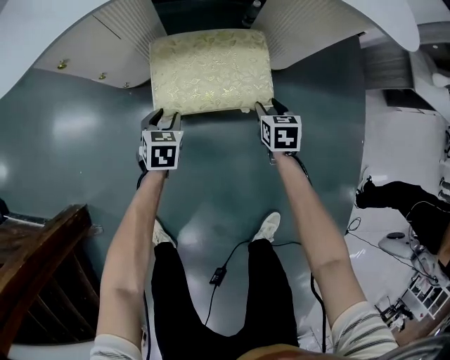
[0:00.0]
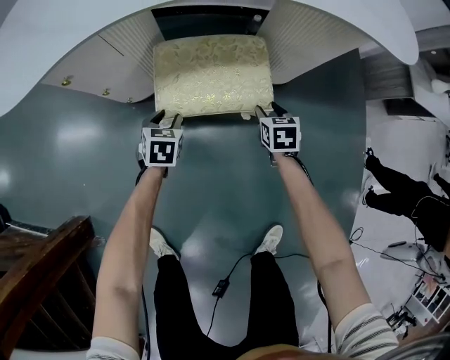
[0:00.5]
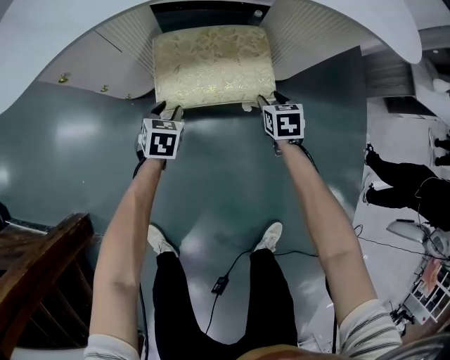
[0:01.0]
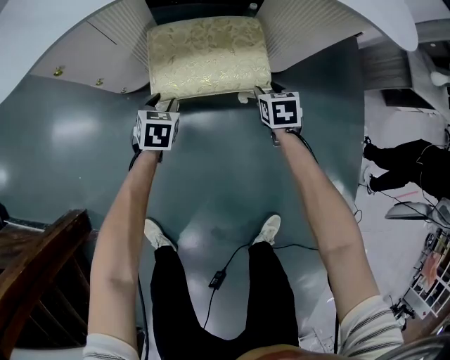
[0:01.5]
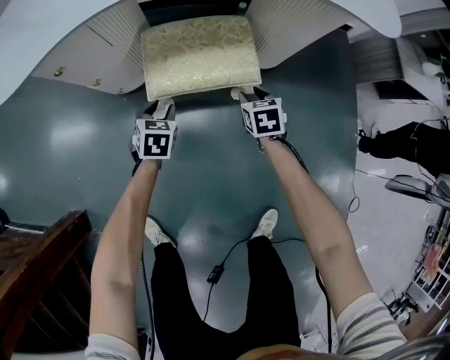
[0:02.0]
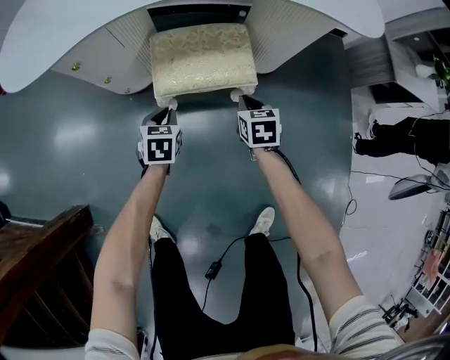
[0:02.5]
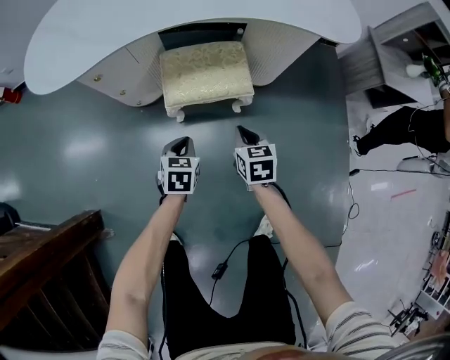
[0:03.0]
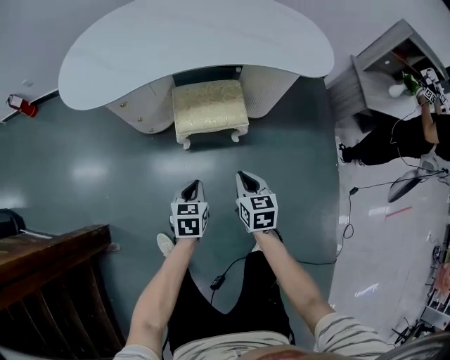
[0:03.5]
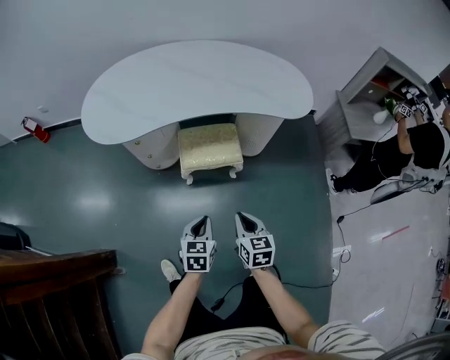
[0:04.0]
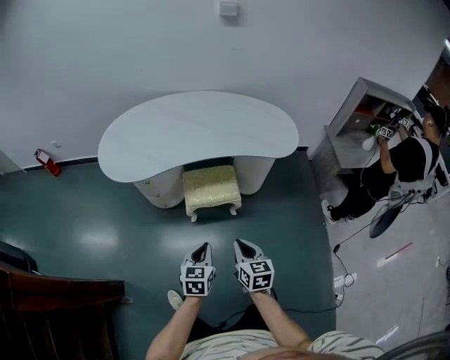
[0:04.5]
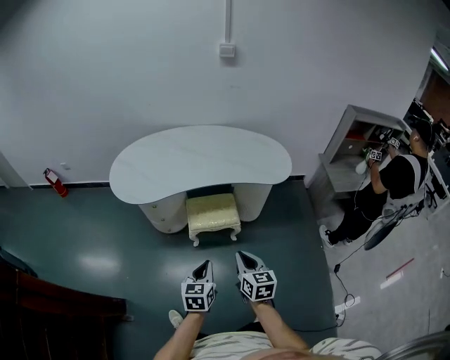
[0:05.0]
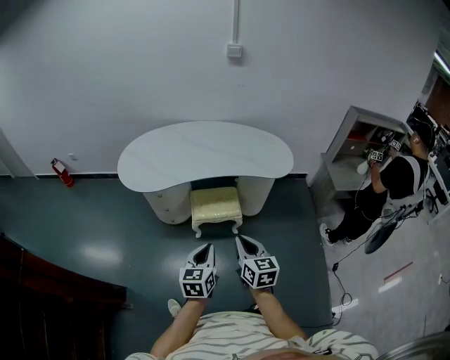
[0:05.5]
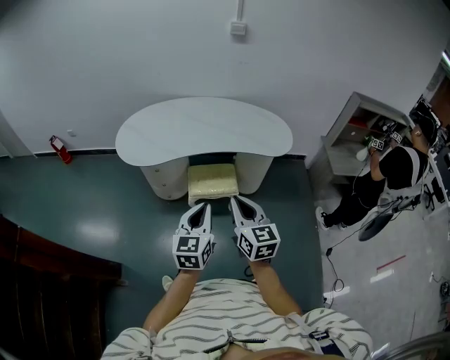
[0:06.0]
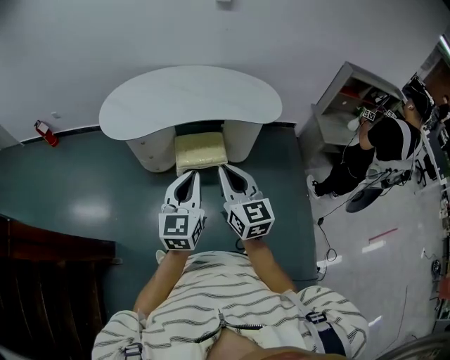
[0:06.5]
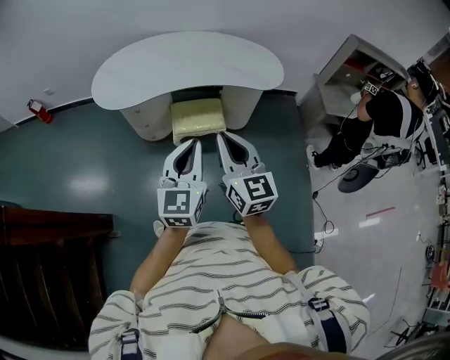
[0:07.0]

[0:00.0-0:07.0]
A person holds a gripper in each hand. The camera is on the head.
0:02.0 to 0:03.5: The grippers both shift upward and backward by approximately 35 cm. The left gripper closes up. Meanwhile the right gripper closes.
0:03.5 to 0:05.0: The two grippers go approximately 30 cm upward.
0:05.0 to 0:07.0: Both grippers travel together upward, about 20 cm. The right gripper turns by approximately 30 degrees. Meanwhile the left gripper changes its angle by roughly 30 degrees.

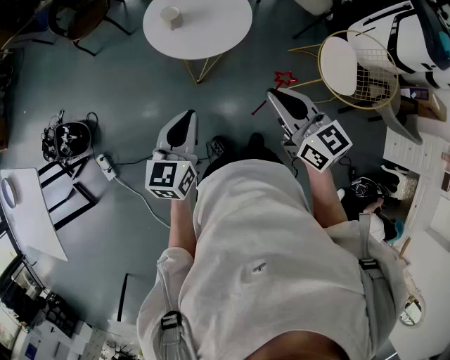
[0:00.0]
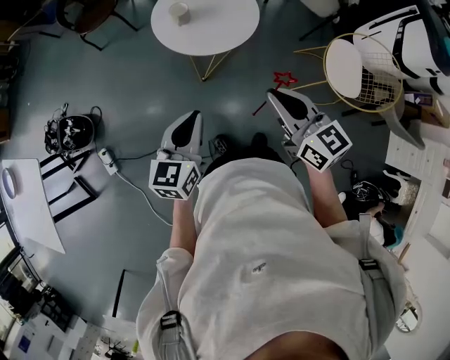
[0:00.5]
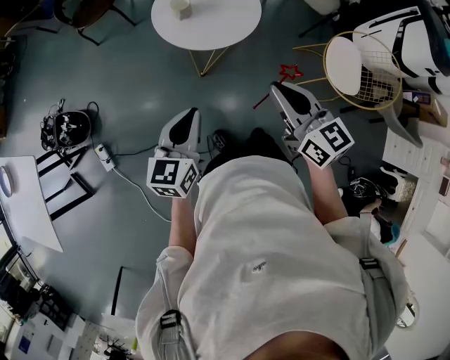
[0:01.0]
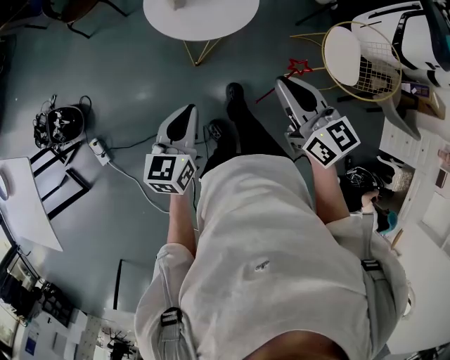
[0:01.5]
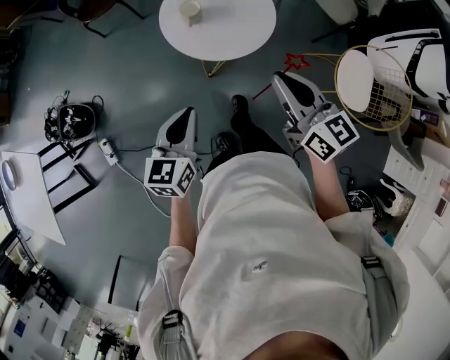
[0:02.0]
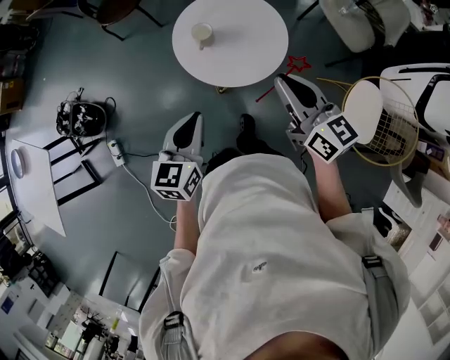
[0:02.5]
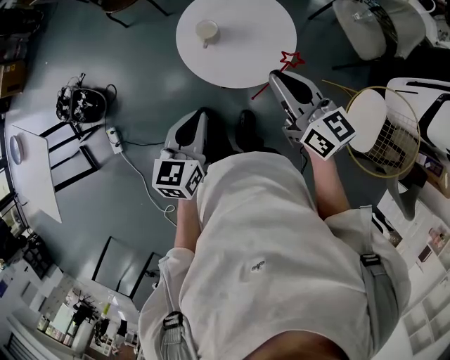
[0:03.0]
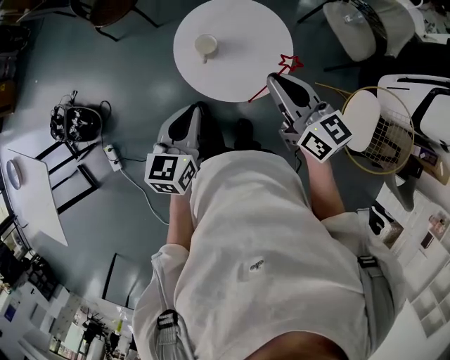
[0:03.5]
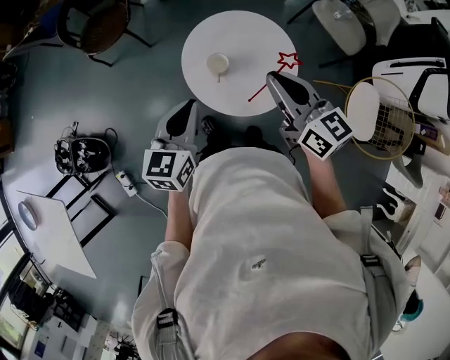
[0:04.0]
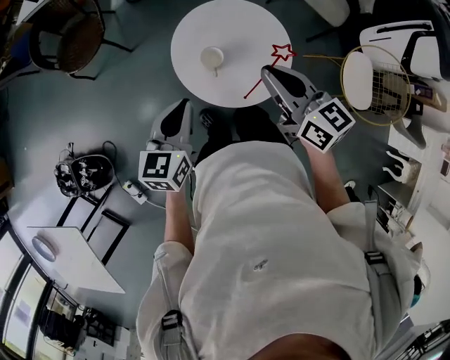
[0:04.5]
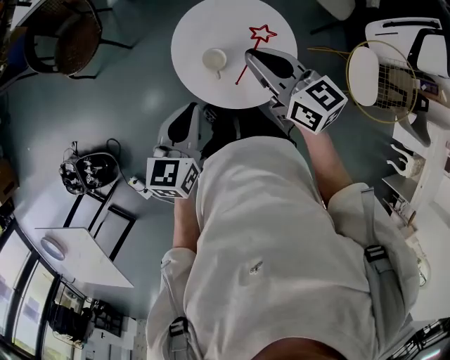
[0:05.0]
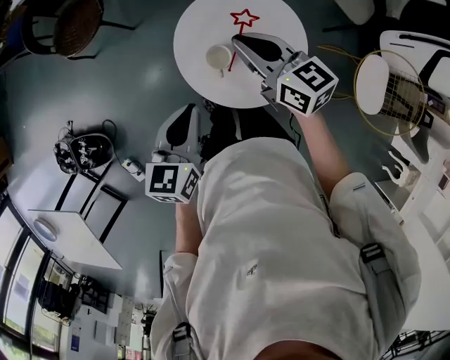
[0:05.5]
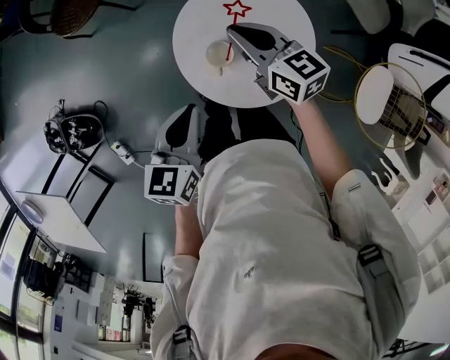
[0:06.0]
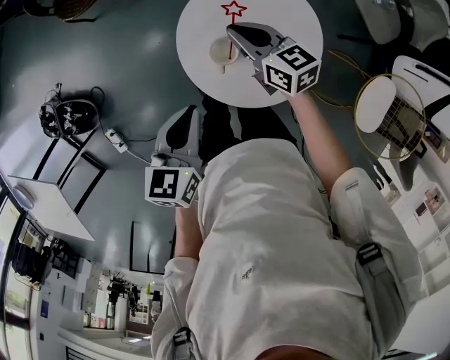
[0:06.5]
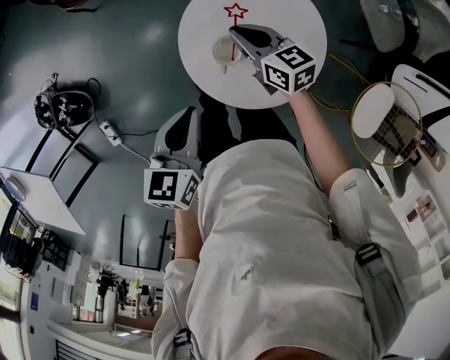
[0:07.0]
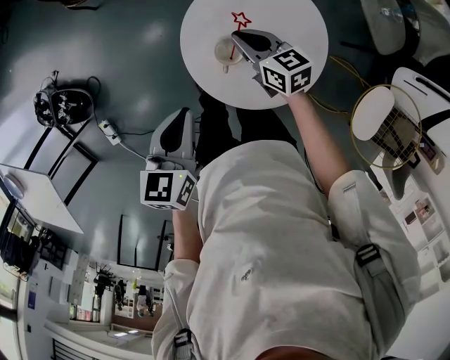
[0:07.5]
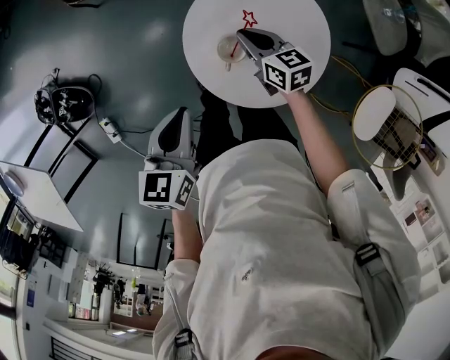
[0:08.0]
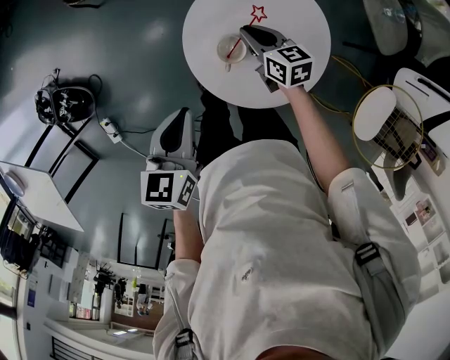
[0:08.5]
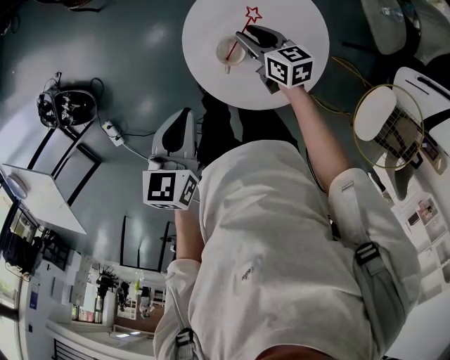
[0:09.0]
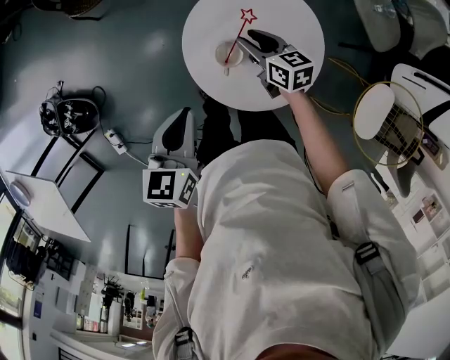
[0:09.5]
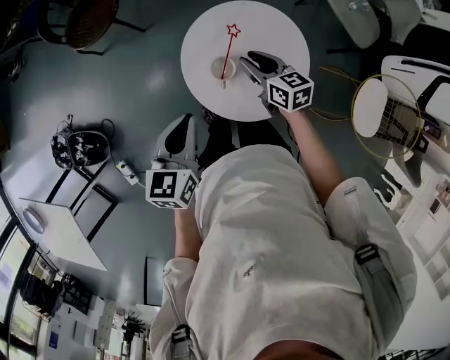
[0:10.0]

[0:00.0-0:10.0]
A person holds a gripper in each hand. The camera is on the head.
0:00.0 to 0:02.0: The right gripper travels forward by approximately 10 cm. The left gripper shifts some 5 cm forward.
0:02.0 to 0:04.0: Both grippers move forward, about 25 cm.
0:04.0 to 0:06.0: The right gripper travels forward and downward by some 25 cm; the left gripper heads downward and forward, covering roughly 10 cm.
0:06.0 to 0:08.0: The right gripper goes some 15 cm downward.
0:08.0 to 0:10.0: The right gripper heads upward, covering approximately 5 cm, and opens up.

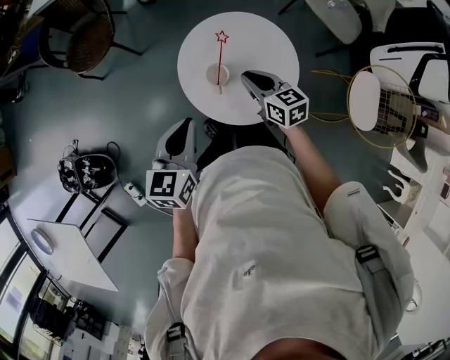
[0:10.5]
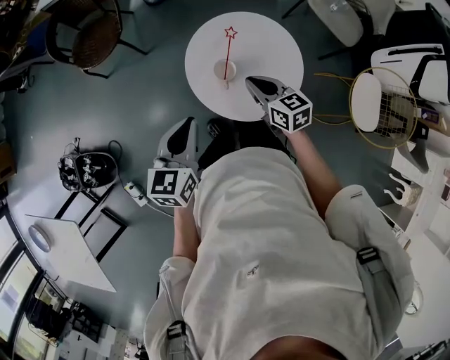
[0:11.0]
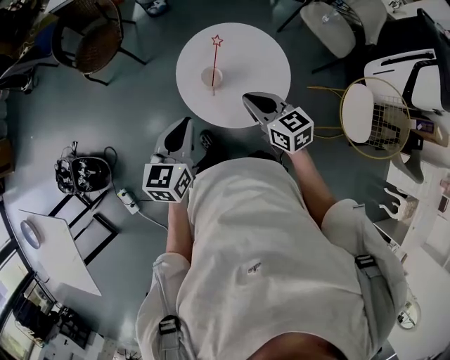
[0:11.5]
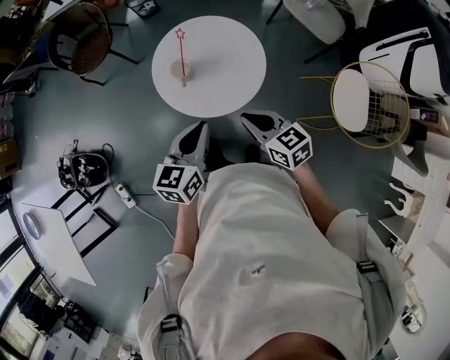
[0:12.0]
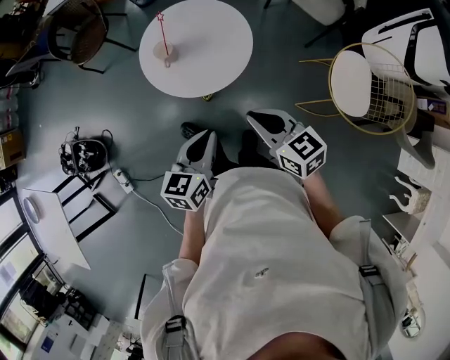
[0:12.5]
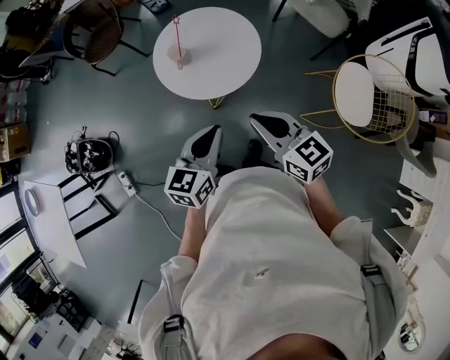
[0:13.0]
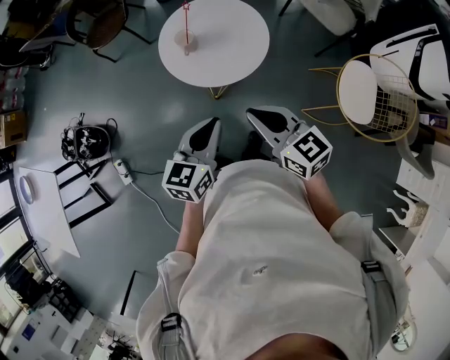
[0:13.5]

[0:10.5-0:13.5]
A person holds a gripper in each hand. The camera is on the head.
0:10.5 to 0:12.0: The left gripper is displaced to the right and backward by roughly 20 cm, while the right gripper shifts some 25 cm backward and to the right.
0:12.0 to 0:13.5: The right gripper moves backward and upward, approximately 15 cm. The left gripper is displaced backward by roughly 15 cm.

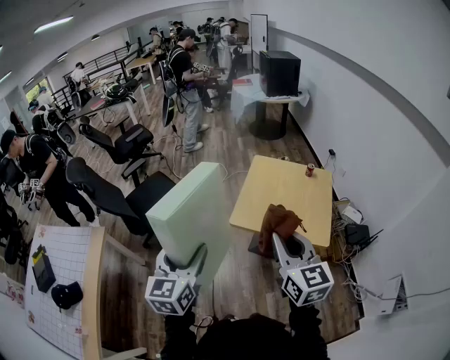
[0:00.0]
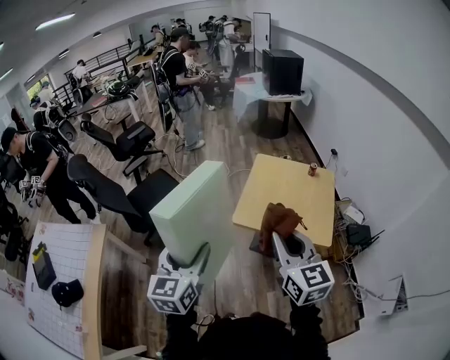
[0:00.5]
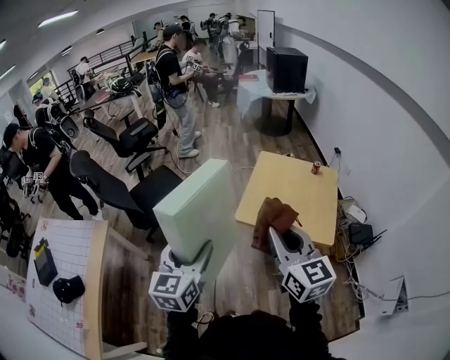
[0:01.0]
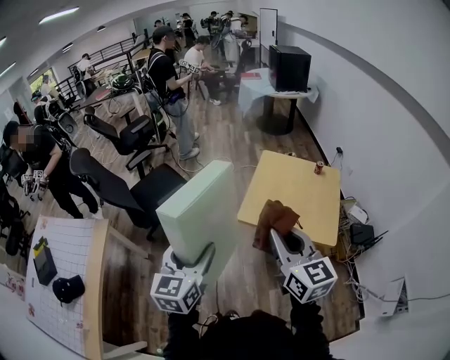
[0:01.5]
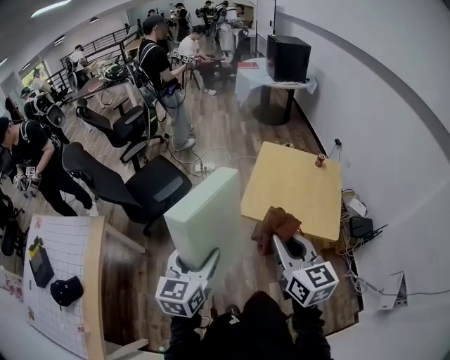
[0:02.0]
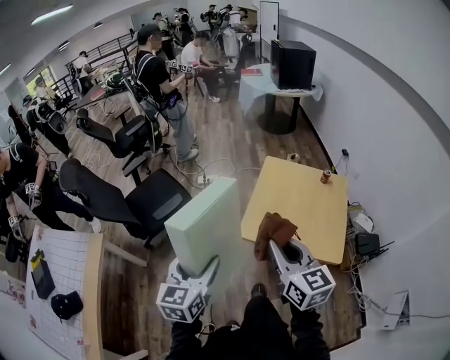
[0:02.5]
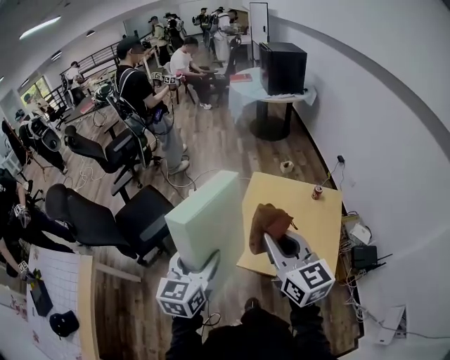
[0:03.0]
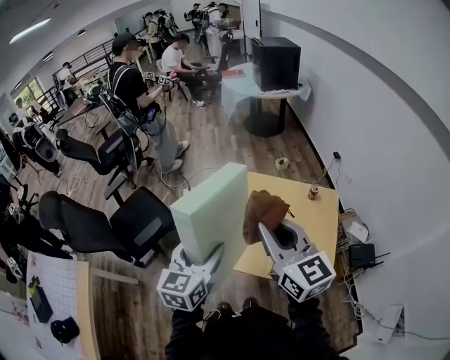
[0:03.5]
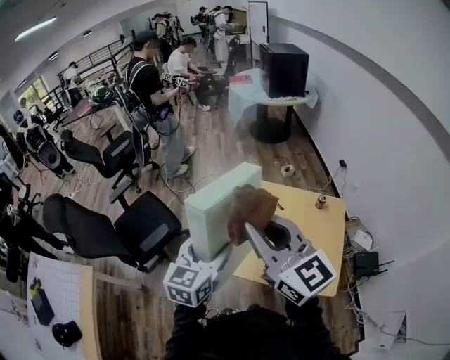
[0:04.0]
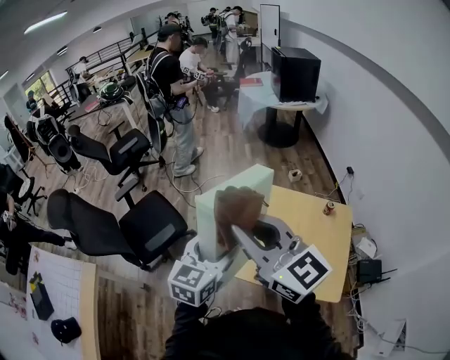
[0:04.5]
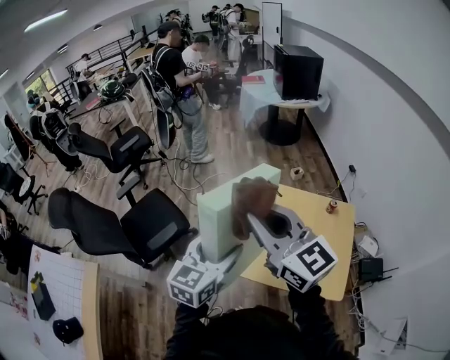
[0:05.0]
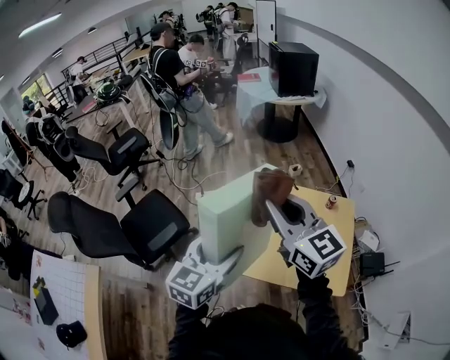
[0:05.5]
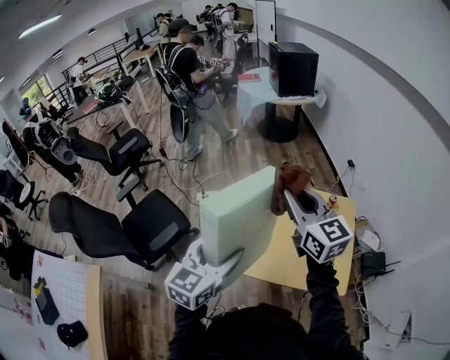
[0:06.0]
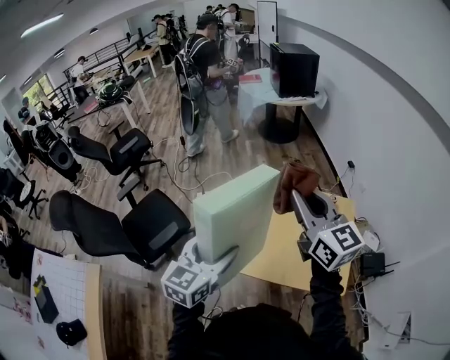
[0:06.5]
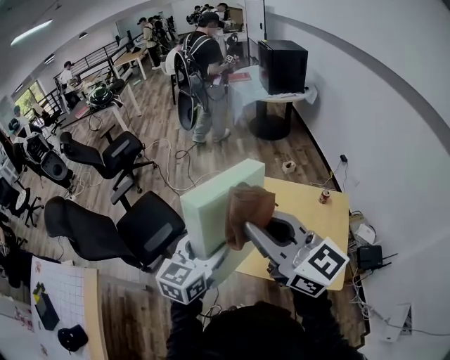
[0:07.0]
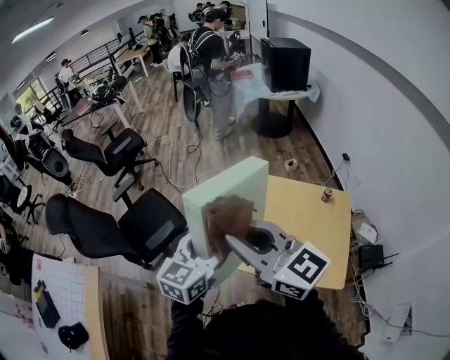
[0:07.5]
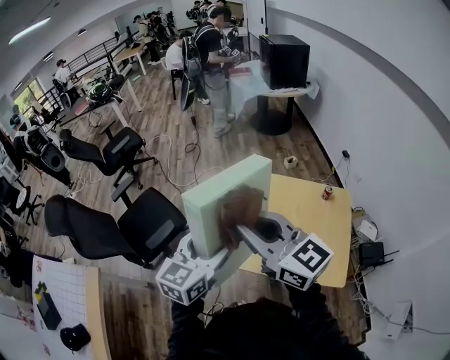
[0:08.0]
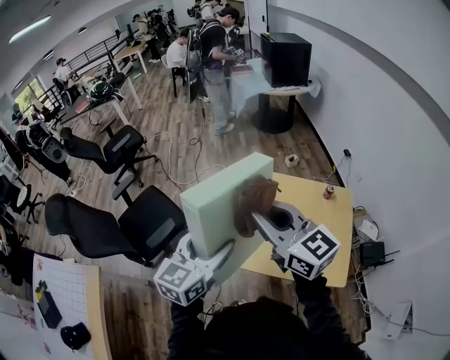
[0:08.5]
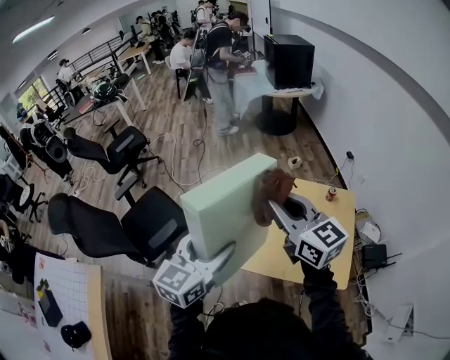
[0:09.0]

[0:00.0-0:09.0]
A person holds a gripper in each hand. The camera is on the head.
0:00.0 to 0:02.0: The right gripper heads to the left, covering approximately 5 cm, while the left gripper shifts roughly 5 cm downward.
0:02.0 to 0:04.5: The right gripper moves forward and upward, approximately 35 cm, and swivels approximately 30 degrees. The left gripper goes about 40 cm forward and to the right.
0:04.5 to 0:07.0: The right gripper goes to the right and returns, some 10 cm each way.
0:07.0 to 0:09.0: The right gripper travels forward and downward by about 10 cm.
